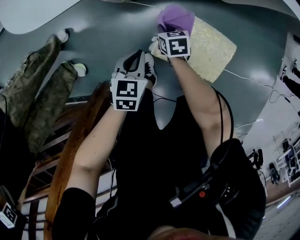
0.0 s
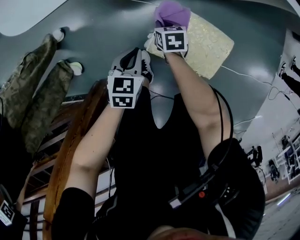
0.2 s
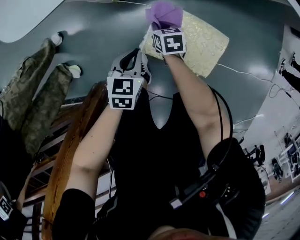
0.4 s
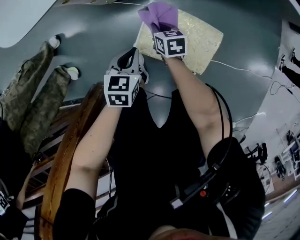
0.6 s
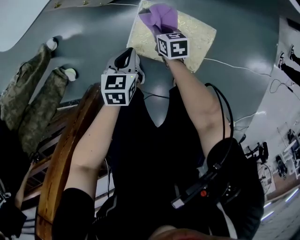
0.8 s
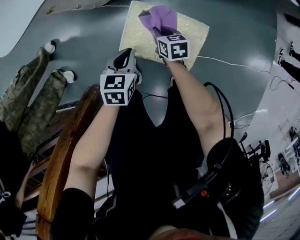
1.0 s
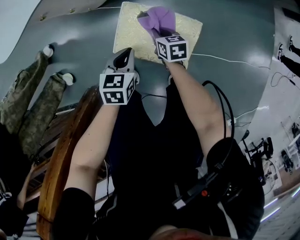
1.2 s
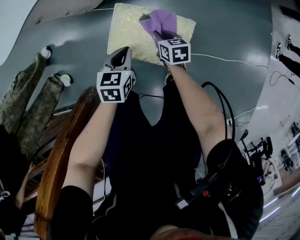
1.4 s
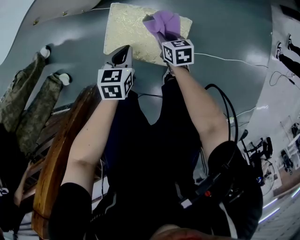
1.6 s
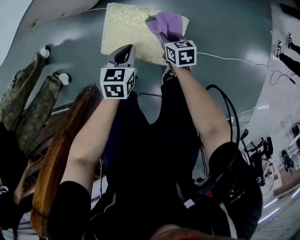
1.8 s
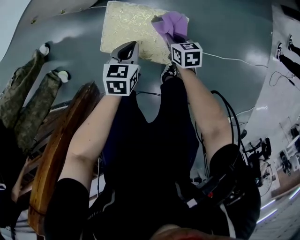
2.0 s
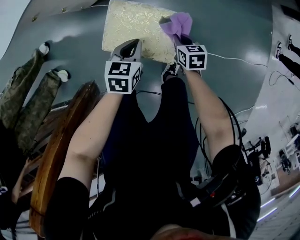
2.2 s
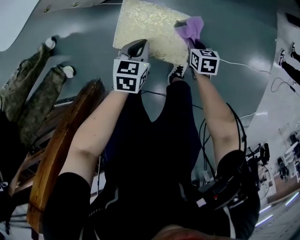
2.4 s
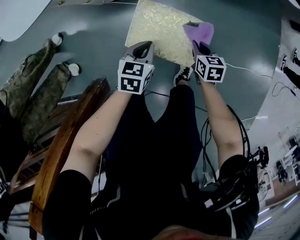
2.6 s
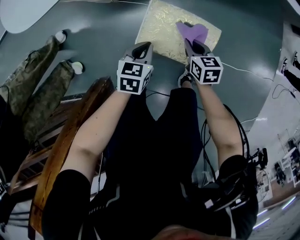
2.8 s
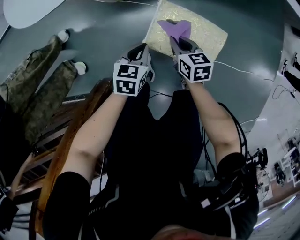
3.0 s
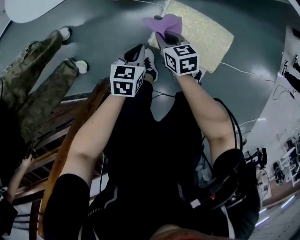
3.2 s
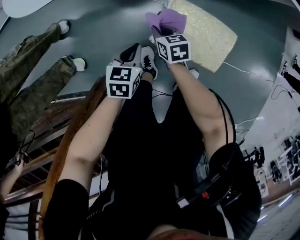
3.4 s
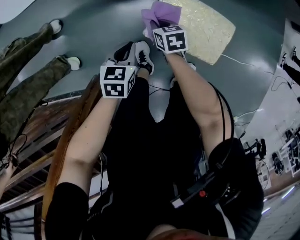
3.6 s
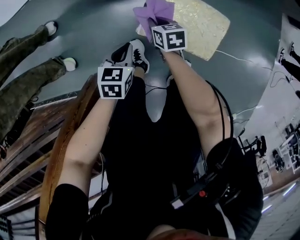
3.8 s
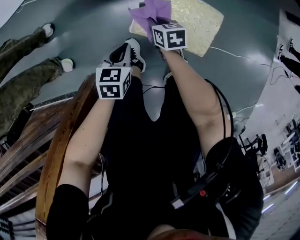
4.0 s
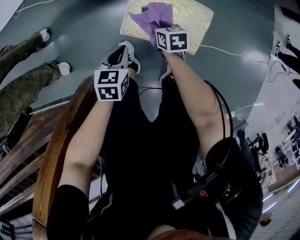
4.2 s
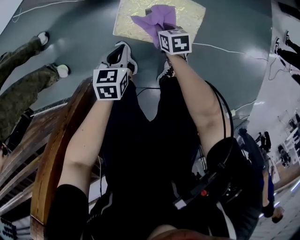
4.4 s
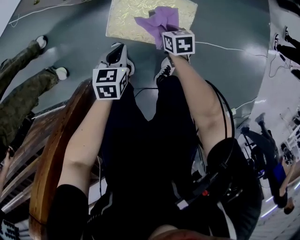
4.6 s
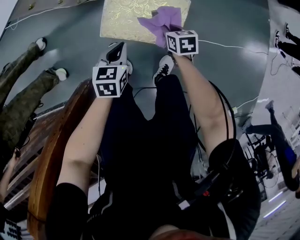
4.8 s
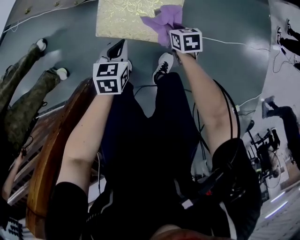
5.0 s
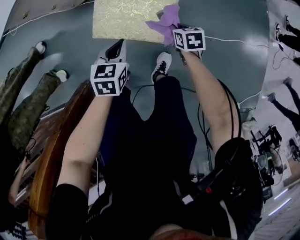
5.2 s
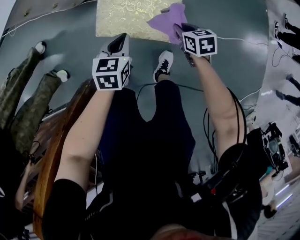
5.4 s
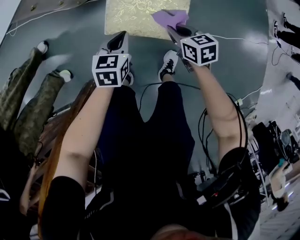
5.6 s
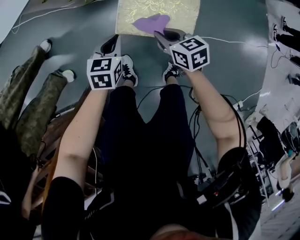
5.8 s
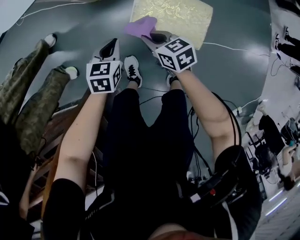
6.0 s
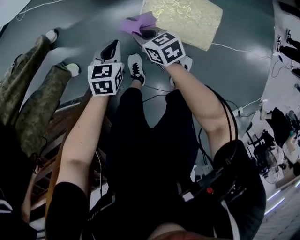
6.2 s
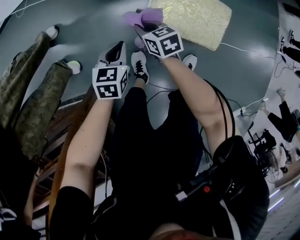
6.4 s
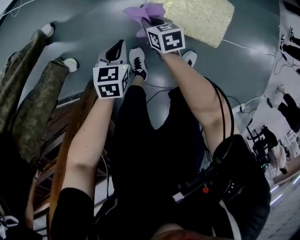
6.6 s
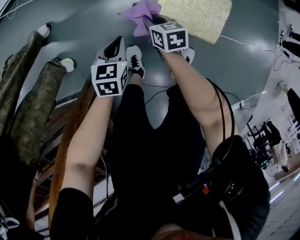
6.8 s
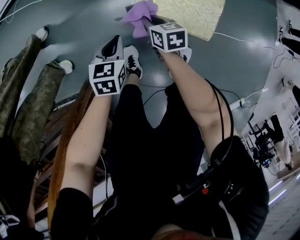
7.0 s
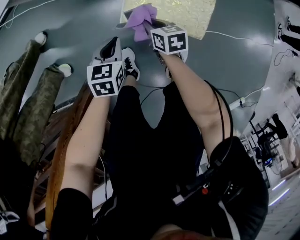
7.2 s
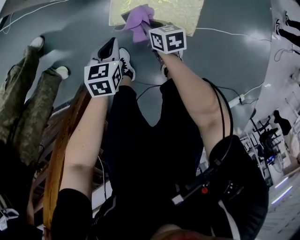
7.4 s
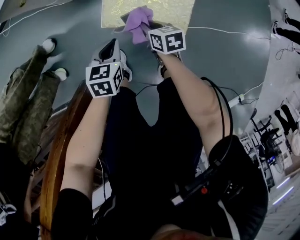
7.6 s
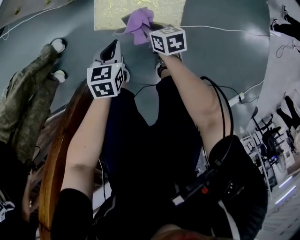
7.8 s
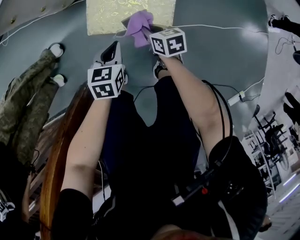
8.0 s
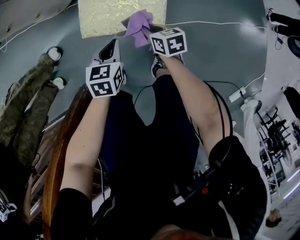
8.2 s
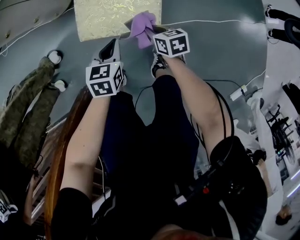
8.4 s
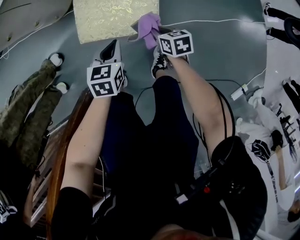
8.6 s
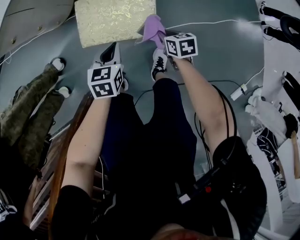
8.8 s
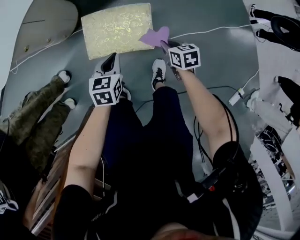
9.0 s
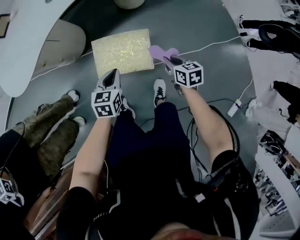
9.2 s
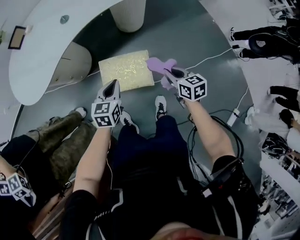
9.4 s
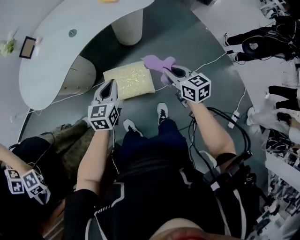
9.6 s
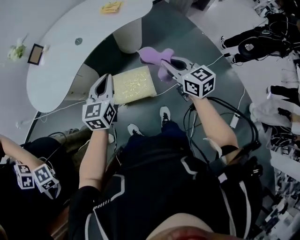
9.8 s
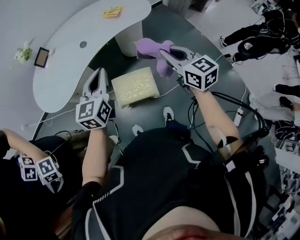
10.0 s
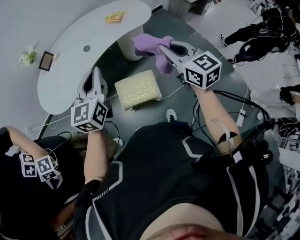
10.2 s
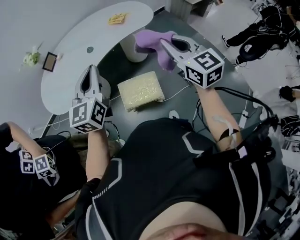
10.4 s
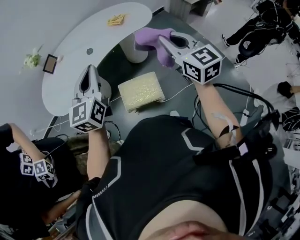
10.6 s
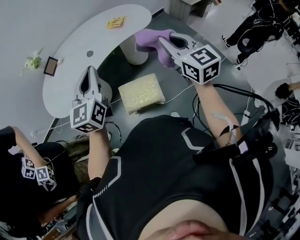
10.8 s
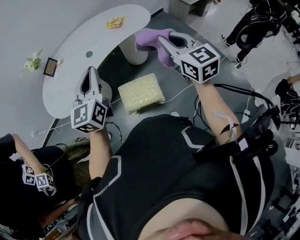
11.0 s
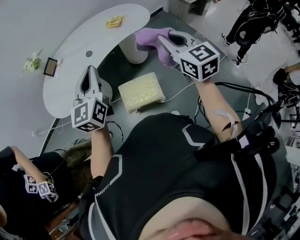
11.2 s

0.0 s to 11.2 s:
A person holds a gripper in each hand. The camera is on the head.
0.0 to 1.6 s: The left gripper moves to the right, about 20 cm. The right gripper goes some 25 cm to the right and backward.
1.6 to 3.2 s: The two grippers go about 20 cm to the left.
3.2 to 4.8 s: The left gripper goes some 20 cm to the right and backward, while the right gripper travels to the right and backward by roughly 30 cm.
4.8 to 6.4 s: The right gripper is displaced to the left by about 30 cm, while the left gripper goes some 20 cm to the left.
6.4 to 8.0 s: The left gripper shifts roughly 20 cm to the right. Meanwhile the right gripper heads to the right and backward, covering some 25 cm.
8.0 to 9.6 s: Both grippers move upward, some 40 cm. The right gripper turns by approximately 30 degrees, while the left gripper swivels some 30 degrees.
9.6 to 11.2 s: Both grippers travel together upward, some 30 cm. The left gripper changes its angle by some 30 degrees. The right gripper turns by roughly 30 degrees.

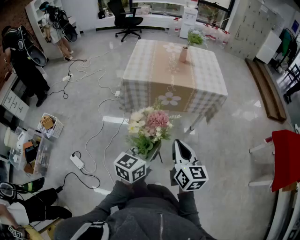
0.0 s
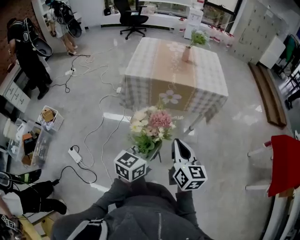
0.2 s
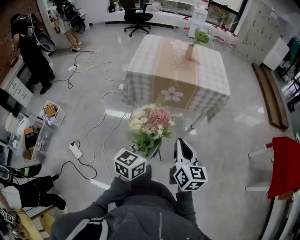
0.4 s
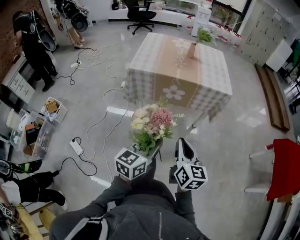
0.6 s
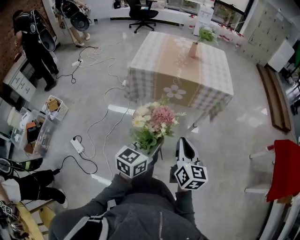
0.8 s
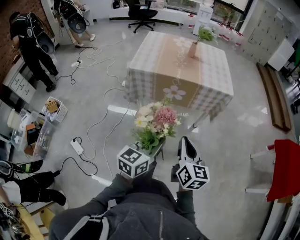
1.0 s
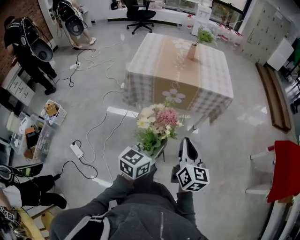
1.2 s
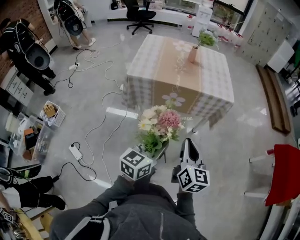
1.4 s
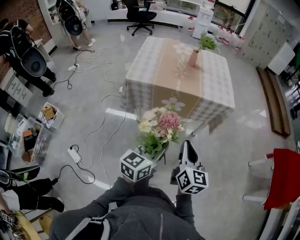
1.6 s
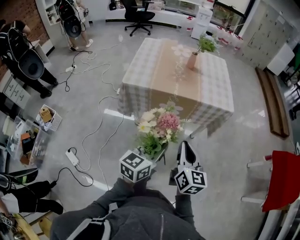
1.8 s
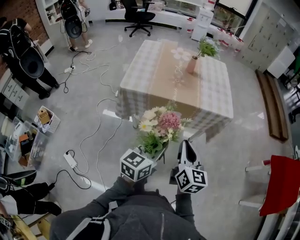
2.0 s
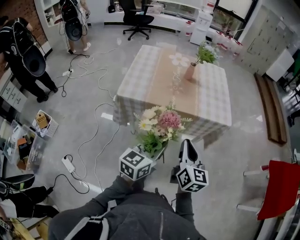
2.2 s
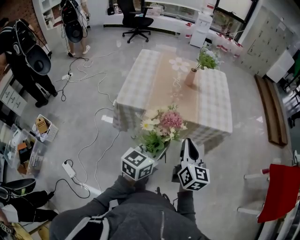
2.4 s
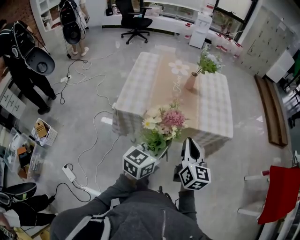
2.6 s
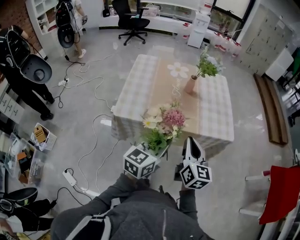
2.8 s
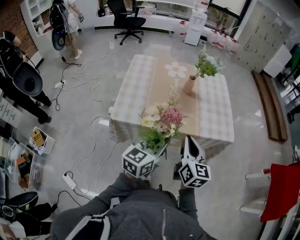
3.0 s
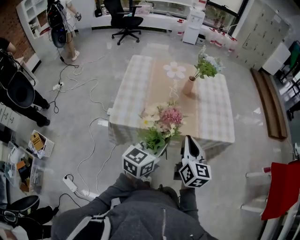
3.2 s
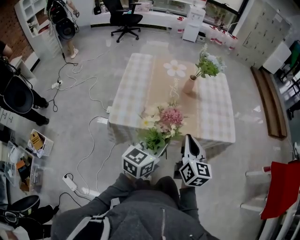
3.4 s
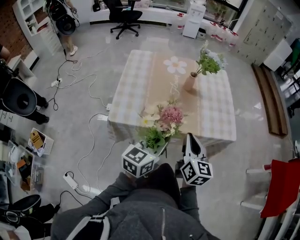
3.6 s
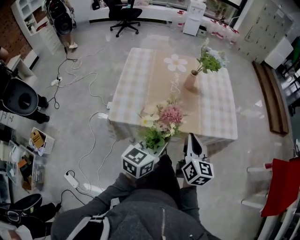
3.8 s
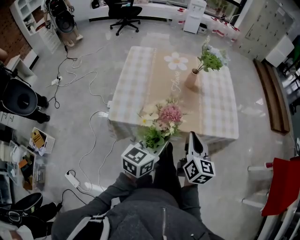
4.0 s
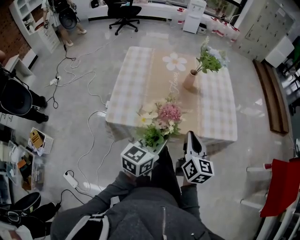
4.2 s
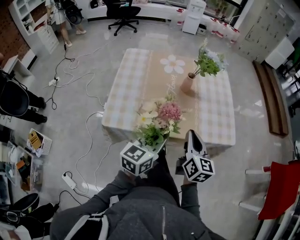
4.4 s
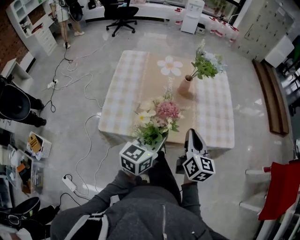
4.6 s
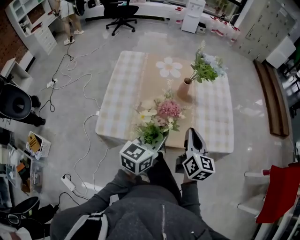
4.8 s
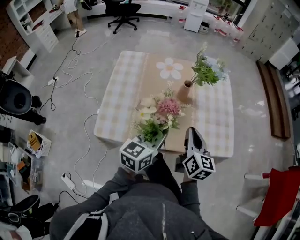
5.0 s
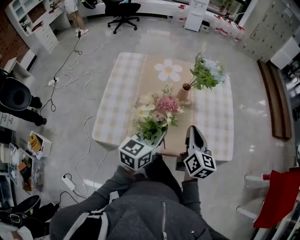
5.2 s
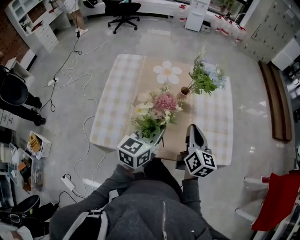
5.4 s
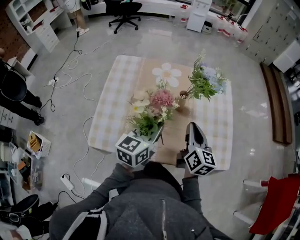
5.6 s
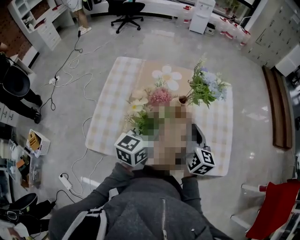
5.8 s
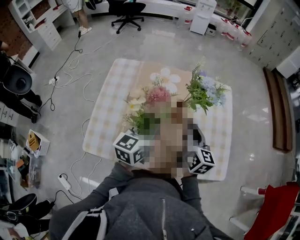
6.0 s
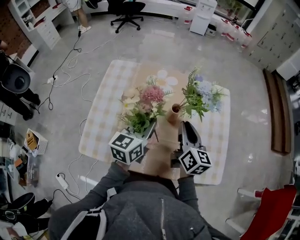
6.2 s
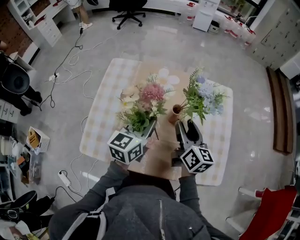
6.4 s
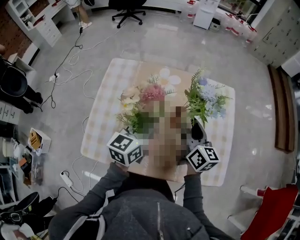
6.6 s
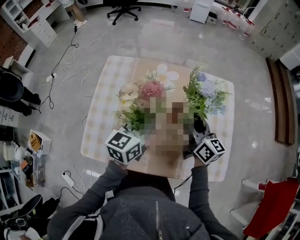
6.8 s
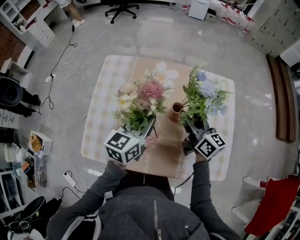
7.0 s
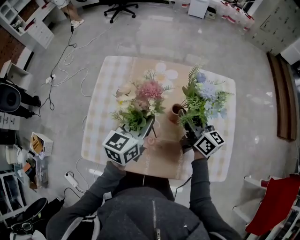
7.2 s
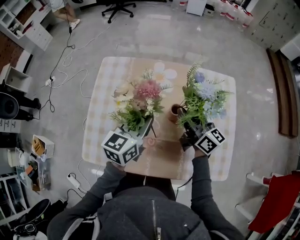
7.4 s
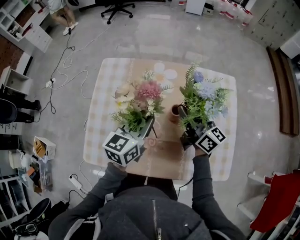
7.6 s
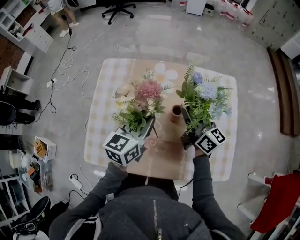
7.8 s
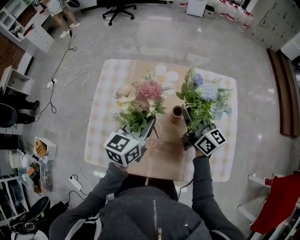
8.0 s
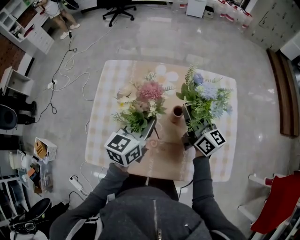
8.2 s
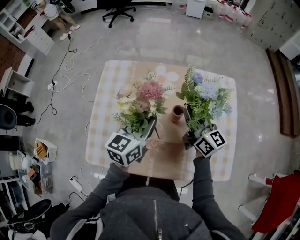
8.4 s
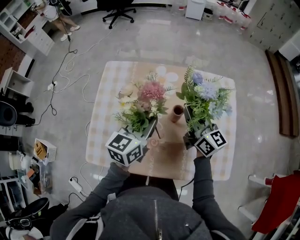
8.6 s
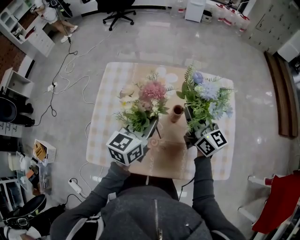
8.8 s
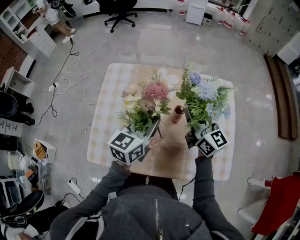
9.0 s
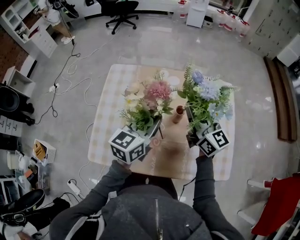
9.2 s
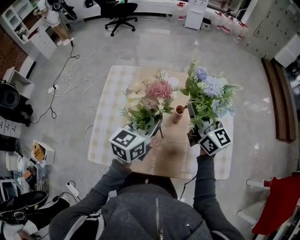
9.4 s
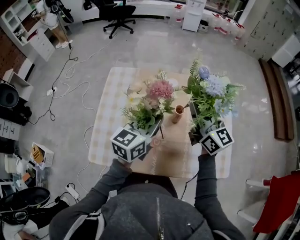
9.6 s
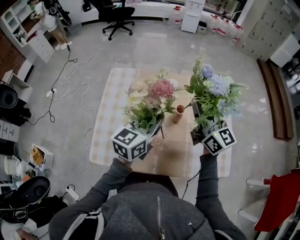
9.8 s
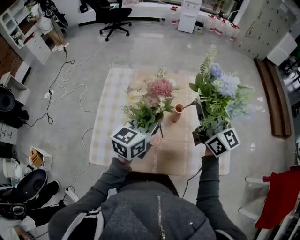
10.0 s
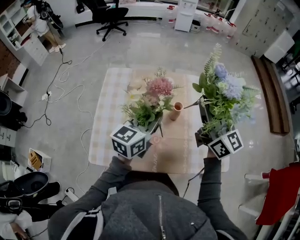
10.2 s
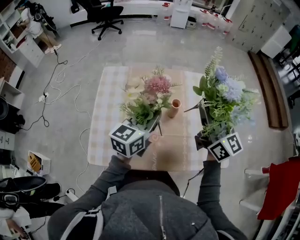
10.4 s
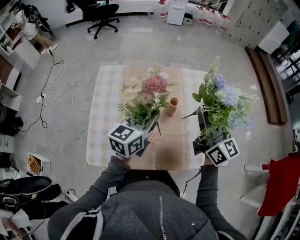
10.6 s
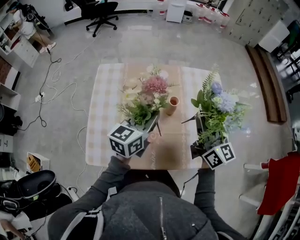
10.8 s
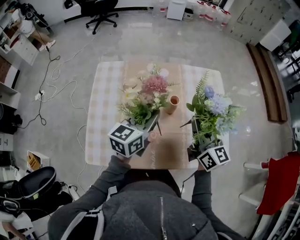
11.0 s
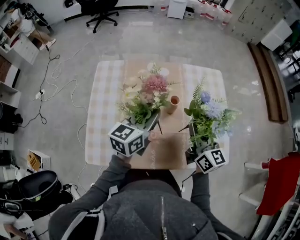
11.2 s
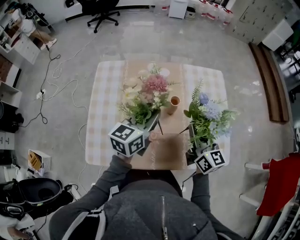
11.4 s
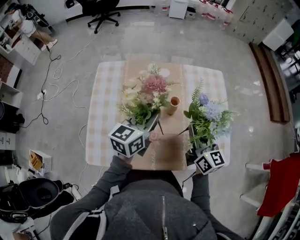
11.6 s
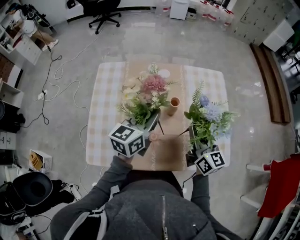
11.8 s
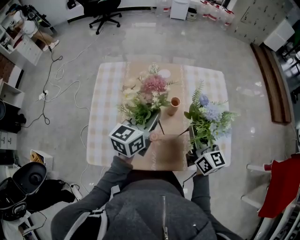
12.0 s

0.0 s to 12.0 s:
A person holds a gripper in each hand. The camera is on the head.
0.0 to 1.6 s: Both grippers travel together forward, roughly 10 cm.
1.6 to 3.0 s: Both grippers travel together forward, approximately 25 cm.
3.0 to 4.4 s: The grippers both shift forward by roughly 10 cm.
4.4 to 6.0 s: The two grippers go roughly 25 cm forward.
6.0 to 7.6 s: The right gripper goes some 10 cm forward, rotates some 30 degrees, and opens up. The left gripper heads forward, covering about 5 cm.
7.6 to 9.0 s: The right gripper shifts by some 5 cm, and closes up.
9.0 to 10.4 s: The right gripper is displaced upward and backward by some 10 cm.
10.4 to 12.0 s: The right gripper travels downward by roughly 15 cm.

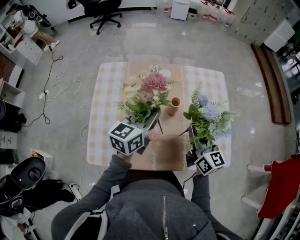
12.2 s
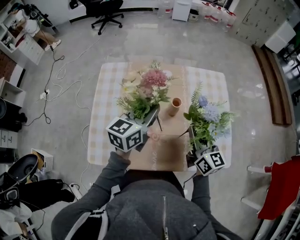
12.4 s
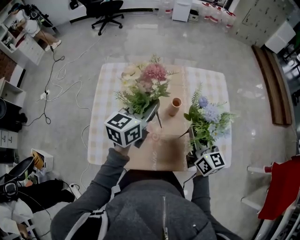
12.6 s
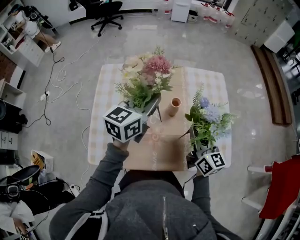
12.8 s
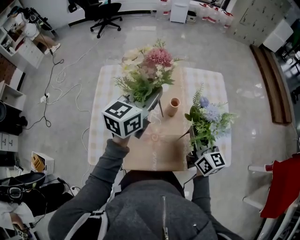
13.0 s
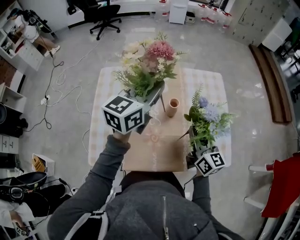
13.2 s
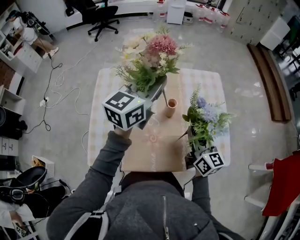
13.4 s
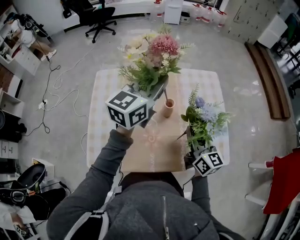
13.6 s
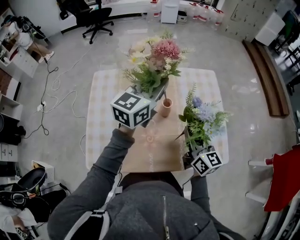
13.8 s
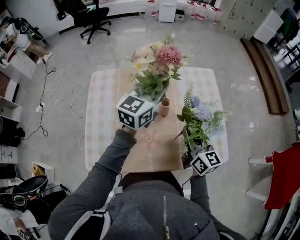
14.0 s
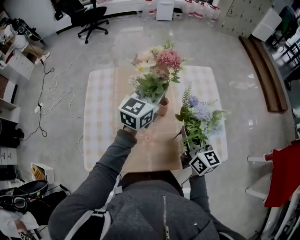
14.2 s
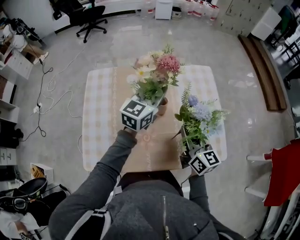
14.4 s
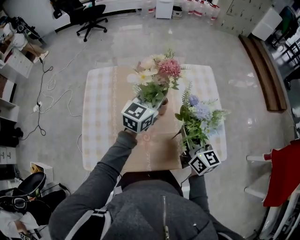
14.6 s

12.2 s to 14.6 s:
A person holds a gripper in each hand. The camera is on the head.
12.2 to 13.4 s: The left gripper goes roughly 15 cm upward and forward.
13.4 to 14.6 s: The left gripper heads downward and to the right, covering approximately 15 cm.
